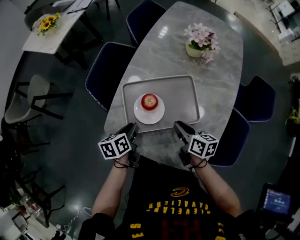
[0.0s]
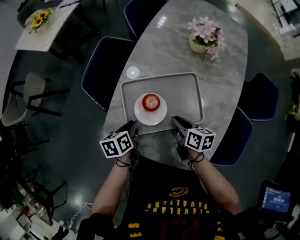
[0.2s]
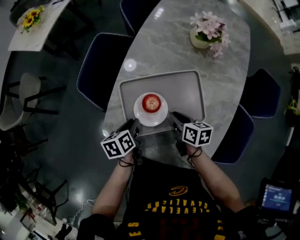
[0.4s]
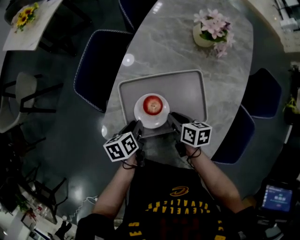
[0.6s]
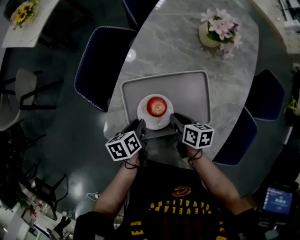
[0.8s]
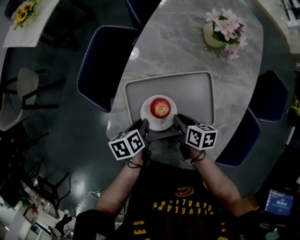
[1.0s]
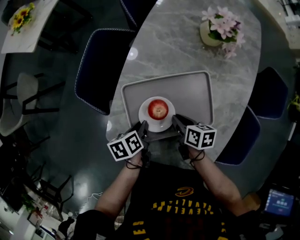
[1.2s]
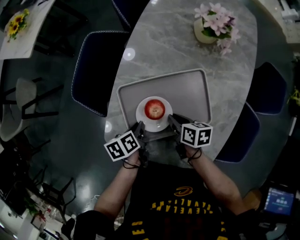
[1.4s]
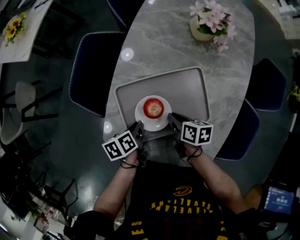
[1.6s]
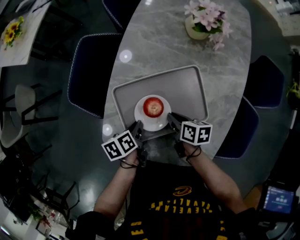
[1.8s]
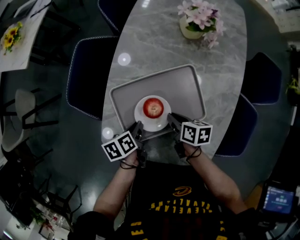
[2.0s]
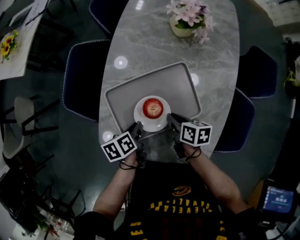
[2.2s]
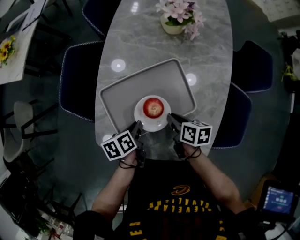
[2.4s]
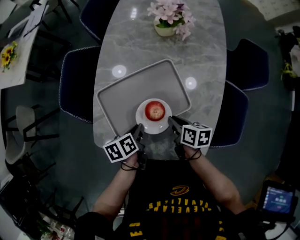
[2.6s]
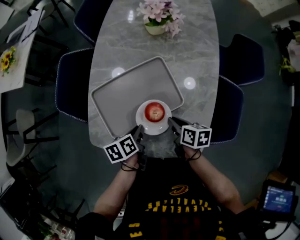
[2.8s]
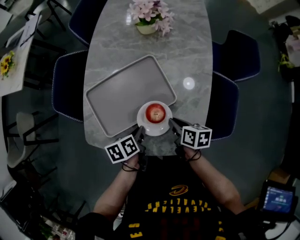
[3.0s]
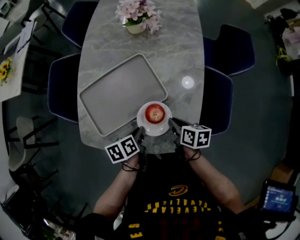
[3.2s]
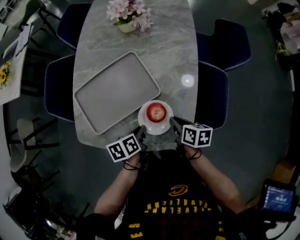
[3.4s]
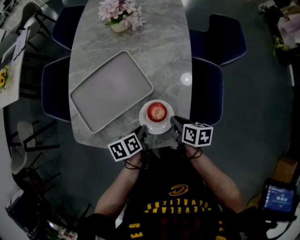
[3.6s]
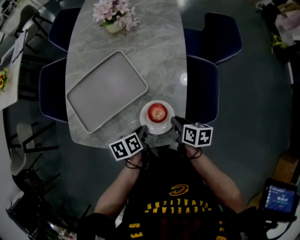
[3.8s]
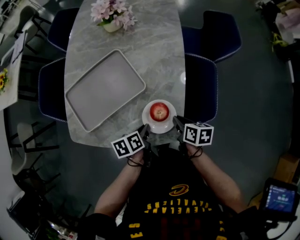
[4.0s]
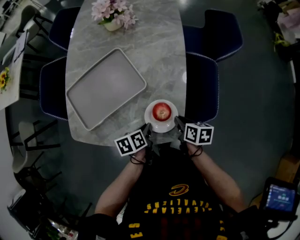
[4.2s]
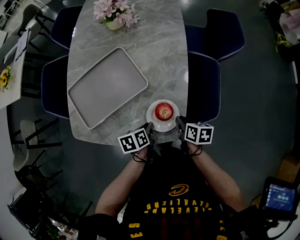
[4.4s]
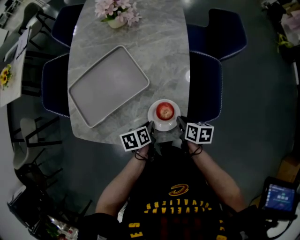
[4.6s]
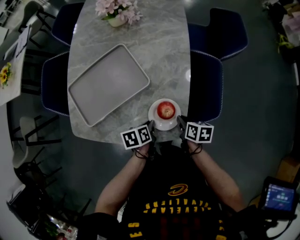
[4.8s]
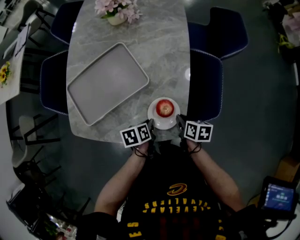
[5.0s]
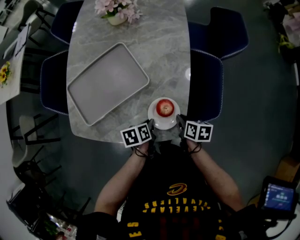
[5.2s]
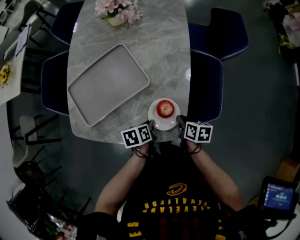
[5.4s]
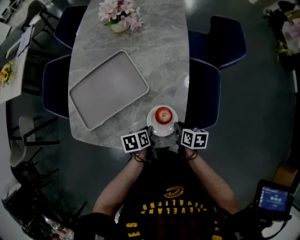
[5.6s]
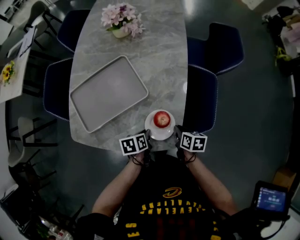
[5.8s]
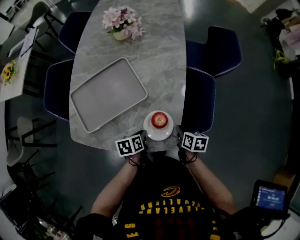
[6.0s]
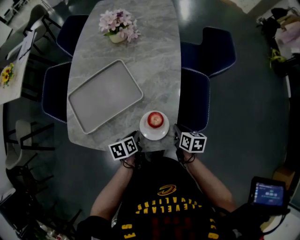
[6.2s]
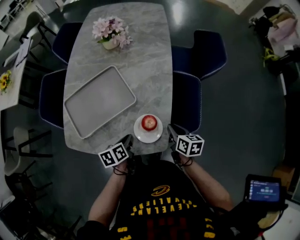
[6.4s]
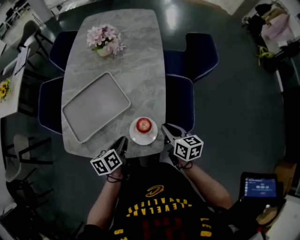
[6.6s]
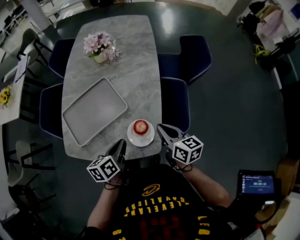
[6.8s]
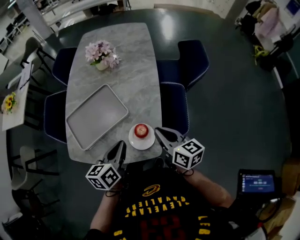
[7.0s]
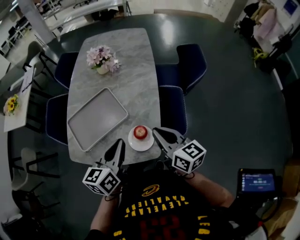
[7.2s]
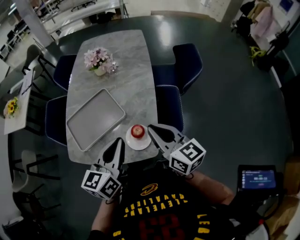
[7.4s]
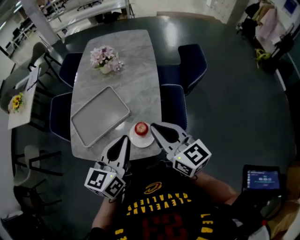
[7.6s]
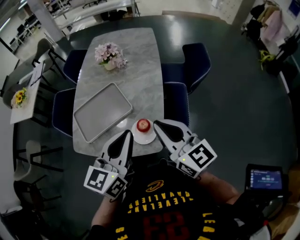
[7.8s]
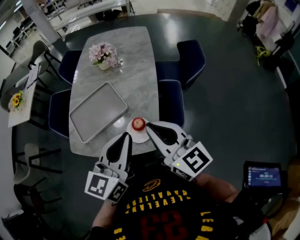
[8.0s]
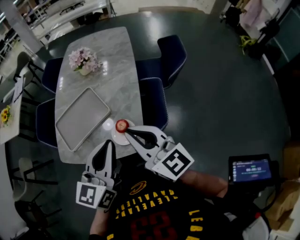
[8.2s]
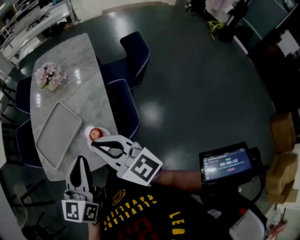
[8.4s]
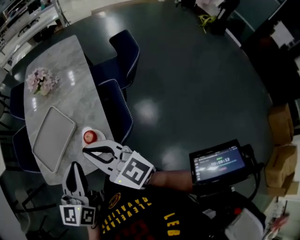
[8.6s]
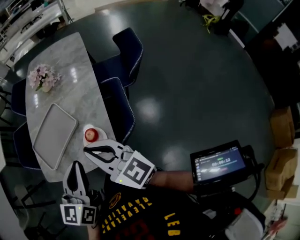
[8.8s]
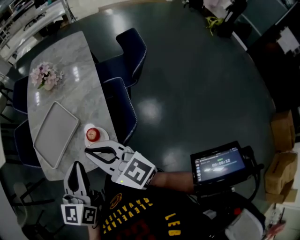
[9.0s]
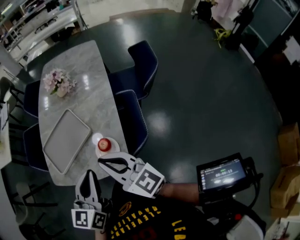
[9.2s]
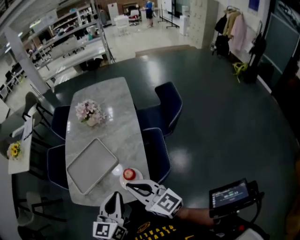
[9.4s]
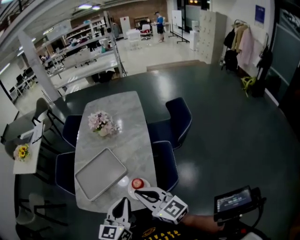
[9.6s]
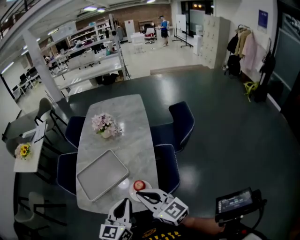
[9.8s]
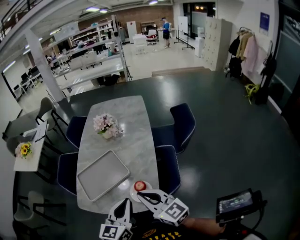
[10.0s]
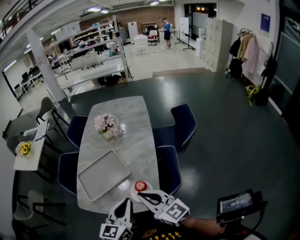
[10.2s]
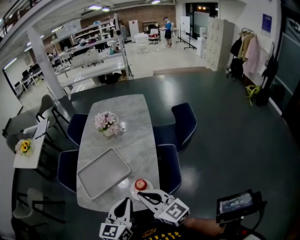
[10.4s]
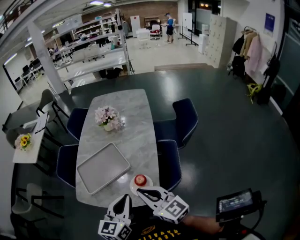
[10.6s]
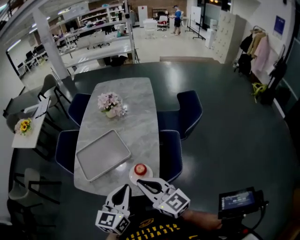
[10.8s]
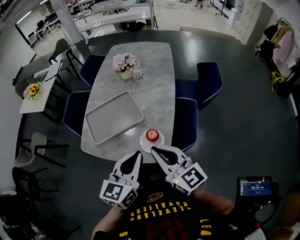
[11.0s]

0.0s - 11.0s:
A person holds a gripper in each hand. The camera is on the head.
0.0s - 1.6s: The left gripper shifts some 5 cm downward. The right gripper heads downward and forward, covering about 10 cm, and changes its angle by roughly 20 degrees.
1.6s - 3.2s: The two grippers go some 20 cm to the right and backward.
3.2s - 4.8s: The right gripper is displaced to the right and backward by roughly 15 cm, while the left gripper heads to the right, covering about 15 cm.
4.8s - 6.2s: There are only small adjustments of the grippers.
6.2s - 7.8s: The two grippers go about 35 cm upward. The left gripper angles its fingers upward, by approximately 40 degrees; the right gripper points its fingers approximately 50 degrees further upward.
7.8s - 9.4s: The right gripper shifts by about 5 cm. Meanwhile the left gripper ends up about 5 cm from where it was.
9.4s - 11.0s: There are only small adjustments of the grippers.

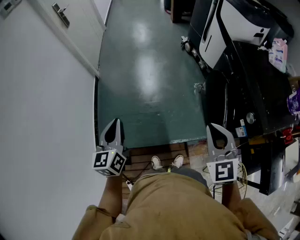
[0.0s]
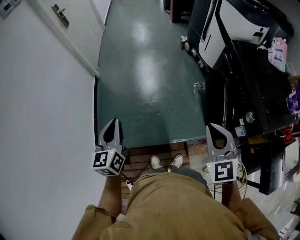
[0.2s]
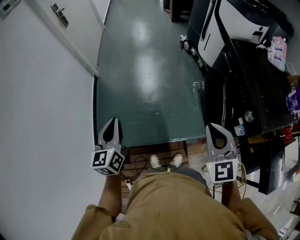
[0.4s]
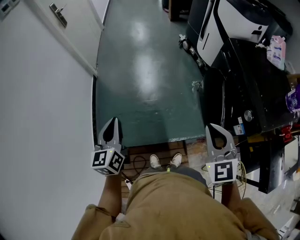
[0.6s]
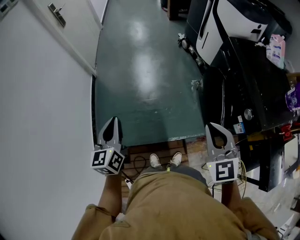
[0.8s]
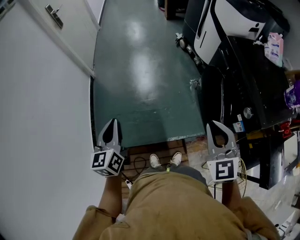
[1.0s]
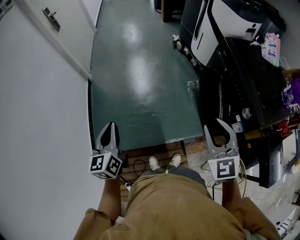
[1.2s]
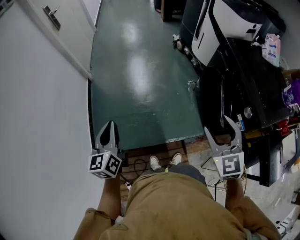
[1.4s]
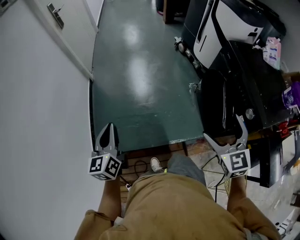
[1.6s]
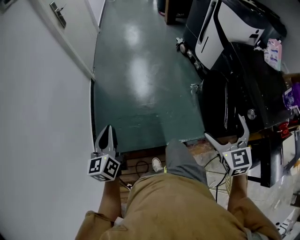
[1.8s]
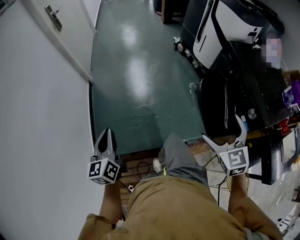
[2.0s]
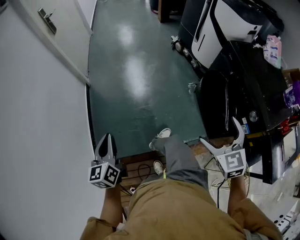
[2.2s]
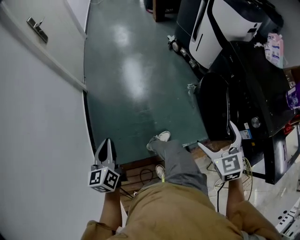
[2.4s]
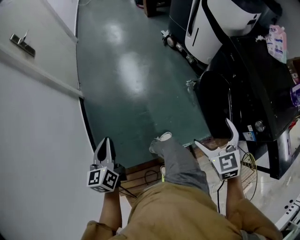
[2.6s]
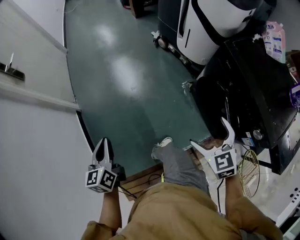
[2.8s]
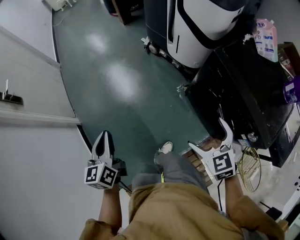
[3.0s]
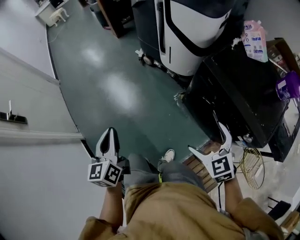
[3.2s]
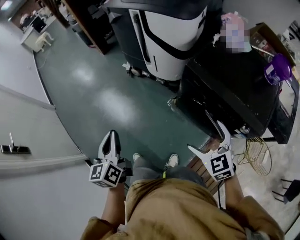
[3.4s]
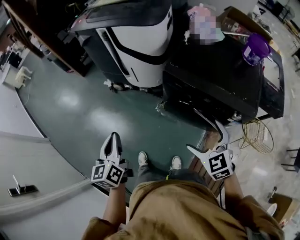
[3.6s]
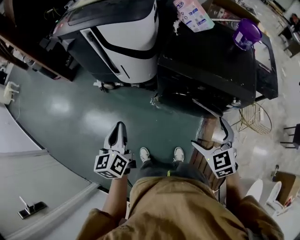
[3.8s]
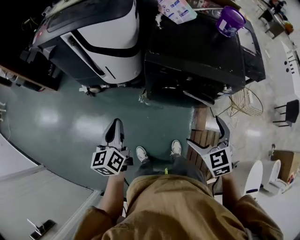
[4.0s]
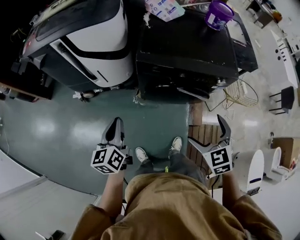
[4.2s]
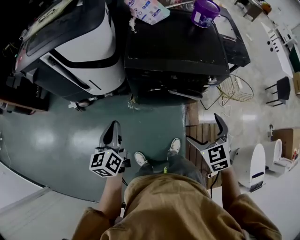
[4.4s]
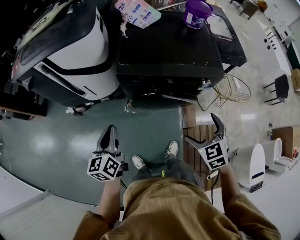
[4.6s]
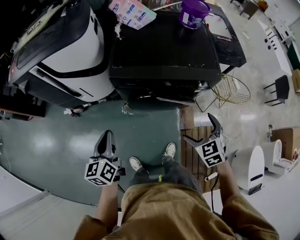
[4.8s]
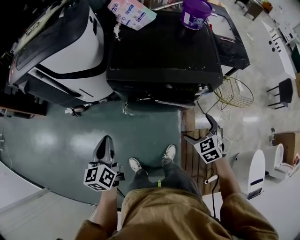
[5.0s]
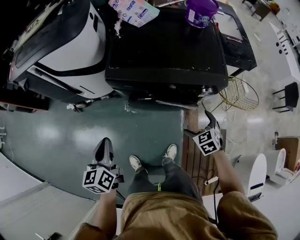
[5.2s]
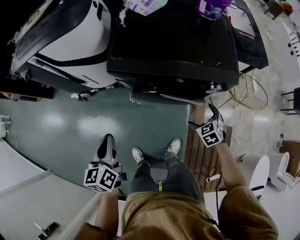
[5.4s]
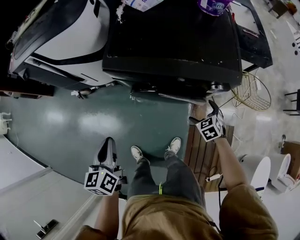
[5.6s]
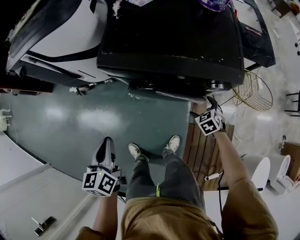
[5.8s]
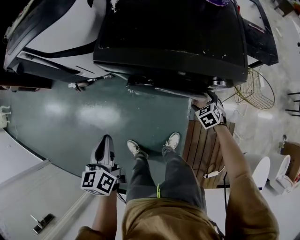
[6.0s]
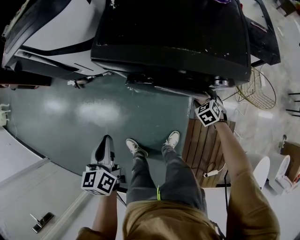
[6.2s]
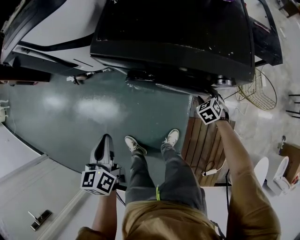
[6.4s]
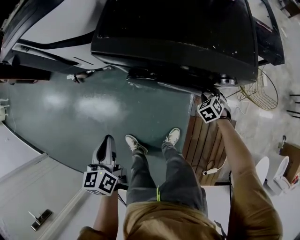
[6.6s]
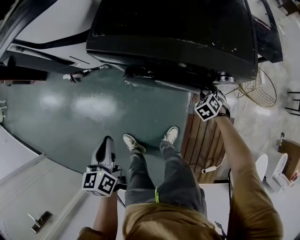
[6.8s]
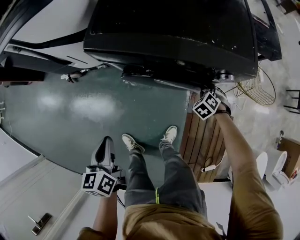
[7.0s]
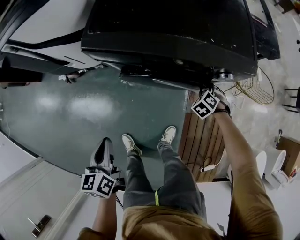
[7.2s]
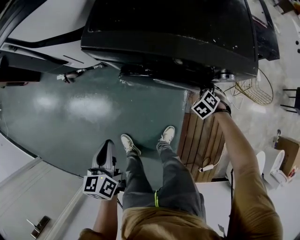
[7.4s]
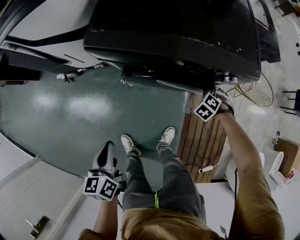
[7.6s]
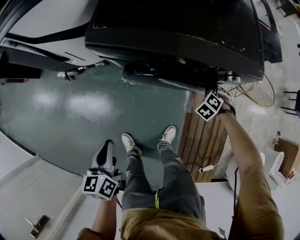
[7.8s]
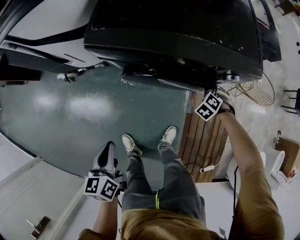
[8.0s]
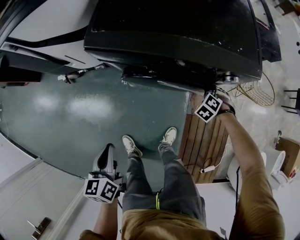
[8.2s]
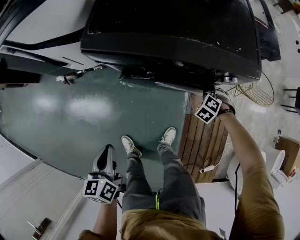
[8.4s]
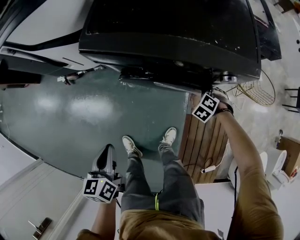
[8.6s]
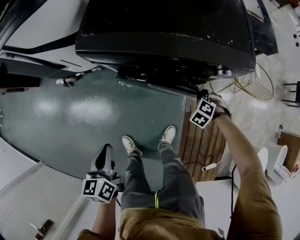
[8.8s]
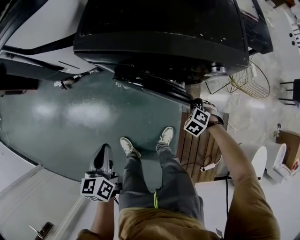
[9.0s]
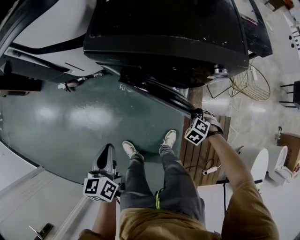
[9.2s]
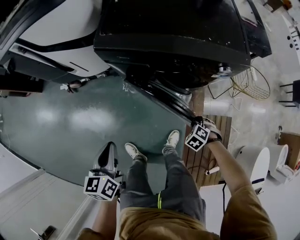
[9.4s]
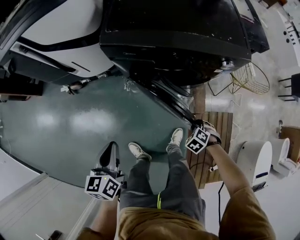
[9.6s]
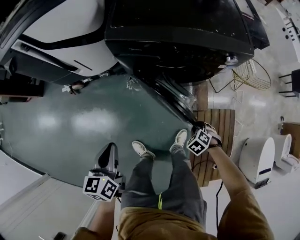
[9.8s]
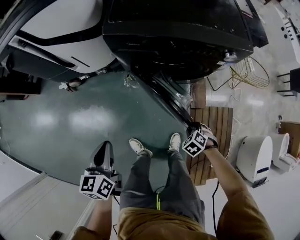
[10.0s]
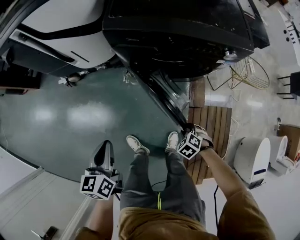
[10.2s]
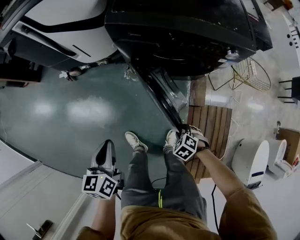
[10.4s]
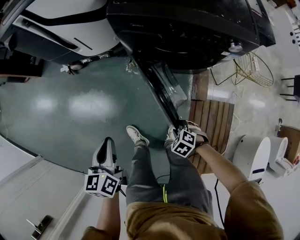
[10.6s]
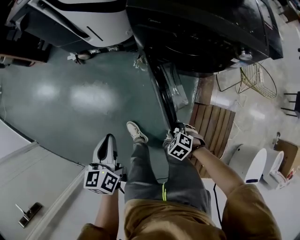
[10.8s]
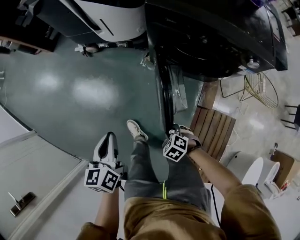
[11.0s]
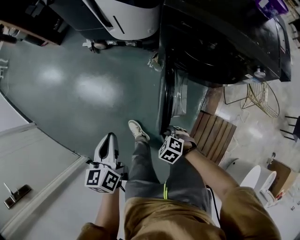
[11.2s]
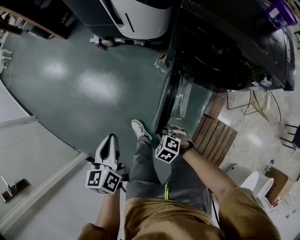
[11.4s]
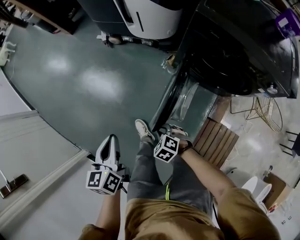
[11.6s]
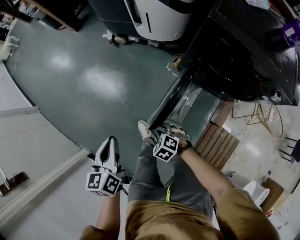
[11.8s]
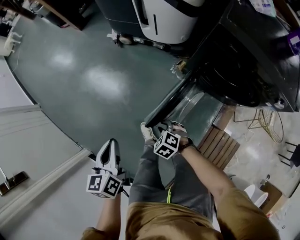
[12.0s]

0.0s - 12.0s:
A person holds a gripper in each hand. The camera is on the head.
0.0s - 1.6s: The left gripper heads to the left, covering some 5 cm. Meanwhile the right gripper opens.
1.6s - 3.0s: The grippers both shift forward by roughly 30 cm. The right gripper rotates roughly 20 degrees.
3.0s - 4.4s: The right gripper changes place by about 10 cm, and changes its angle by approximately 60 degrees; the left gripper moves roughly 10 cm upward and comes back, and turns by some 60 degrees.
4.4s - 6.0s: The left gripper heads to the right and downward, covering approximately 15 cm. Meanwhile the right gripper travels downward, to the right and forward by roughly 40 cm, and changes its angle by some 20 degrees.
6.0s - 7.6s: The right gripper moves approximately 5 cm, changes its angle by roughly 30 degrees, and closes up, while the left gripper goes approximately 10 cm downward.
7.6s - 9.0s: The right gripper ends up about 10 cm from where it was.
9.0s - 10.4s: The left gripper moves some 10 cm; the right gripper moves some 25 cm.
10.4s - 12.0s: The right gripper moves some 30 cm, and changes its angle by about 30 degrees. Meanwhile the left gripper changes place by roughly 20 cm, and swivels about 30 degrees.

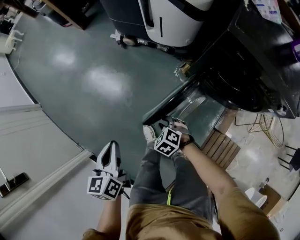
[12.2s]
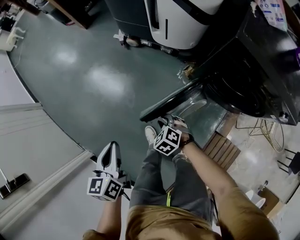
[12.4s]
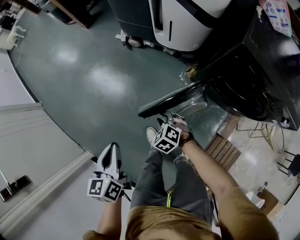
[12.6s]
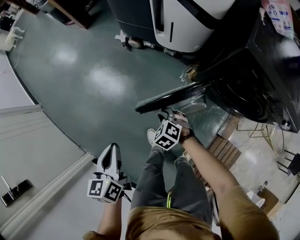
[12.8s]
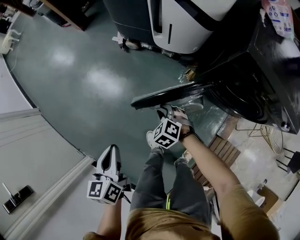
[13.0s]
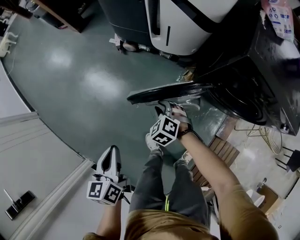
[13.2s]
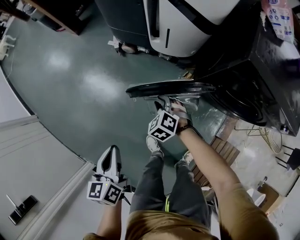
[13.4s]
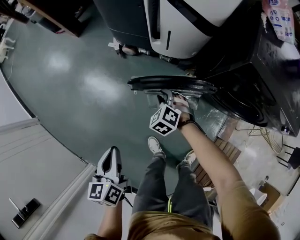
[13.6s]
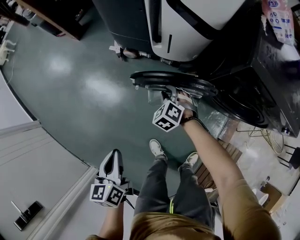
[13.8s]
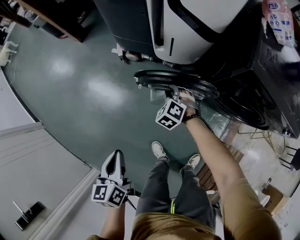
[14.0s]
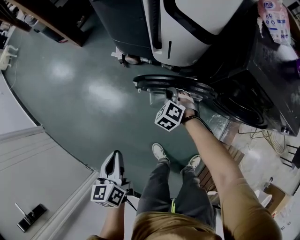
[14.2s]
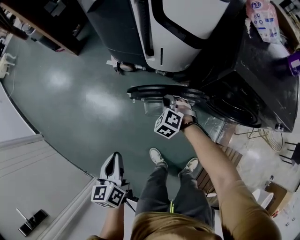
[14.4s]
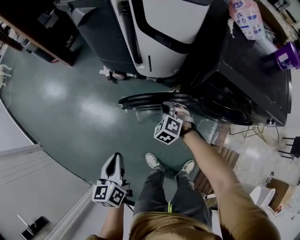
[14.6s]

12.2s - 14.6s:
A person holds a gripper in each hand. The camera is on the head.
12.2s - 13.4s: The left gripper shifts approximately 15 cm forward; the right gripper goes roughly 25 cm forward.
13.4s - 14.6s: The left gripper shifts by roughly 5 cm. The right gripper travels to the right, upward and forward by roughly 15 cm.
